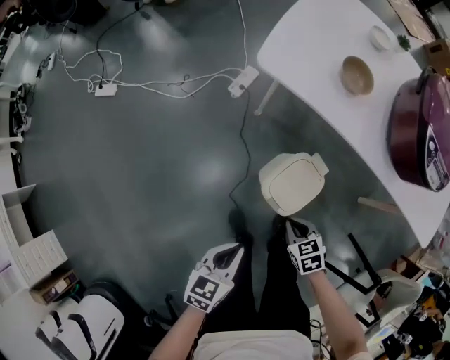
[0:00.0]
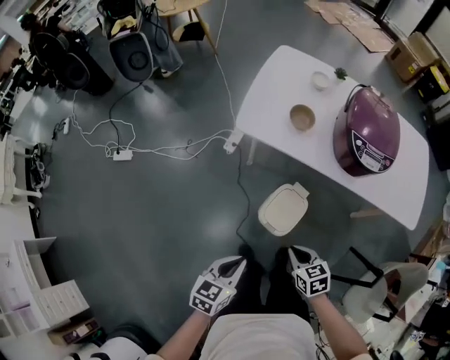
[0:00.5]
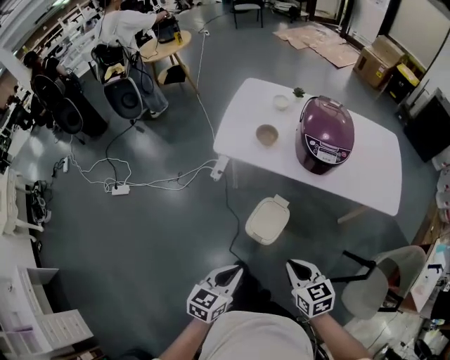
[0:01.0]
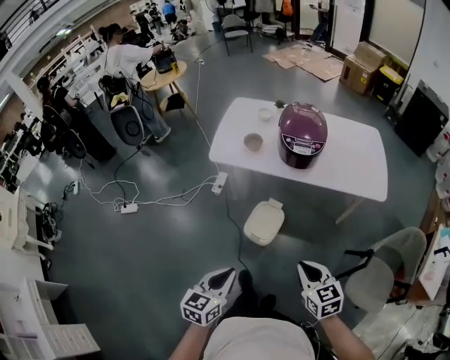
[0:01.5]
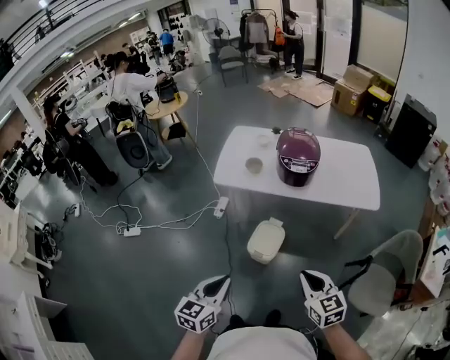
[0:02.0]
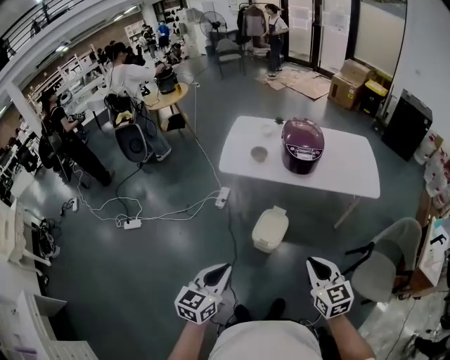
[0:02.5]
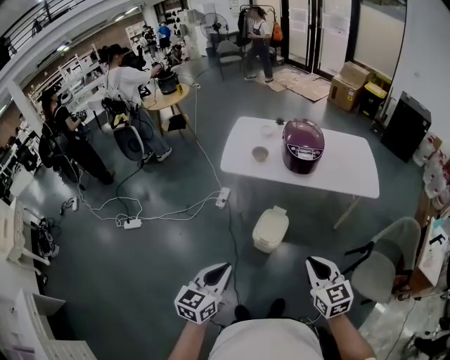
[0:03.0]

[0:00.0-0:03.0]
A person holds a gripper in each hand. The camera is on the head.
0:00.0 to 0:01.5: Both grippers move upward and backward, approximately 40 cm. The left gripper changes its angle by approximately 20 degrees; the right gripper angles its fingers upward, by approximately 30 degrees.
0:01.5 to 0:03.0: The left gripper is displaced to the left, upward and backward by about 15 cm, while the right gripper is displaced upward, backward and to the left by roughly 15 cm.

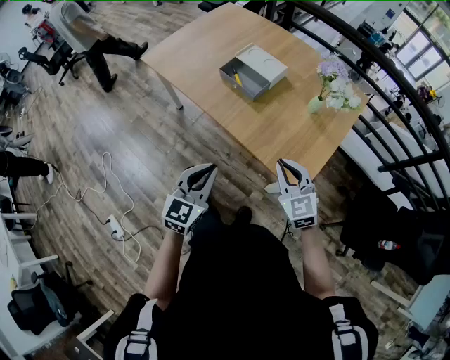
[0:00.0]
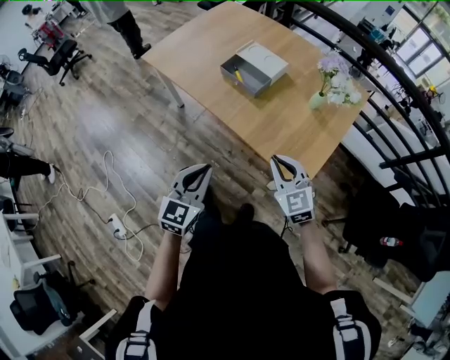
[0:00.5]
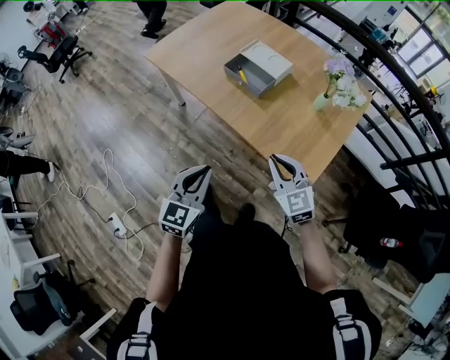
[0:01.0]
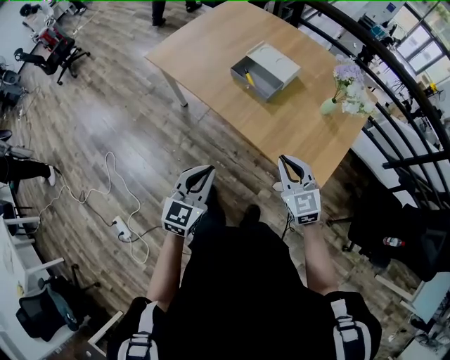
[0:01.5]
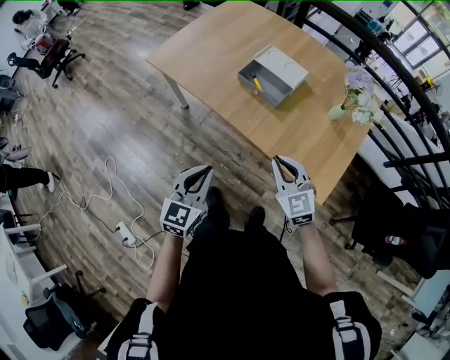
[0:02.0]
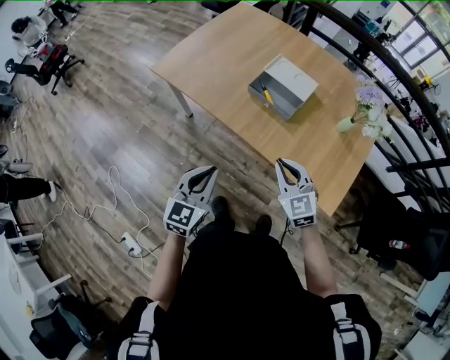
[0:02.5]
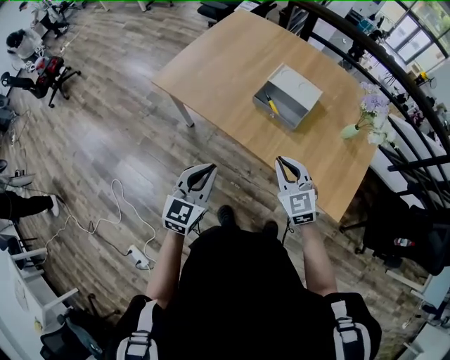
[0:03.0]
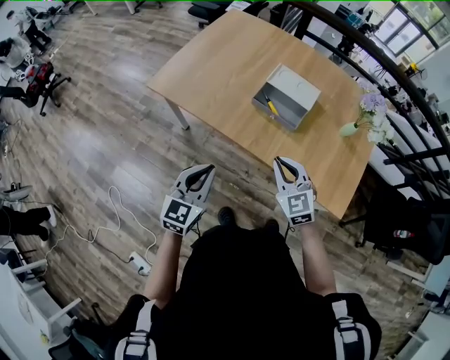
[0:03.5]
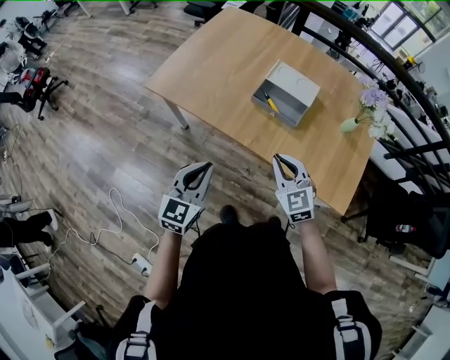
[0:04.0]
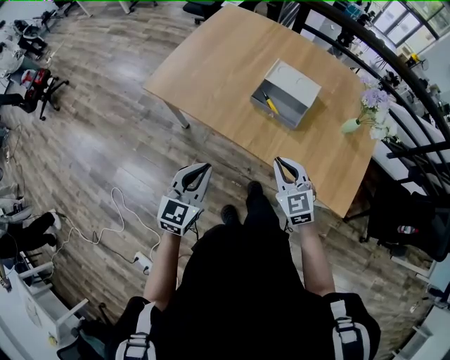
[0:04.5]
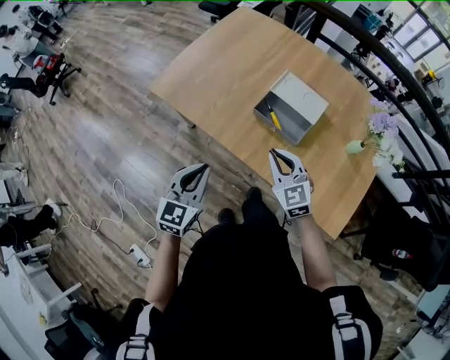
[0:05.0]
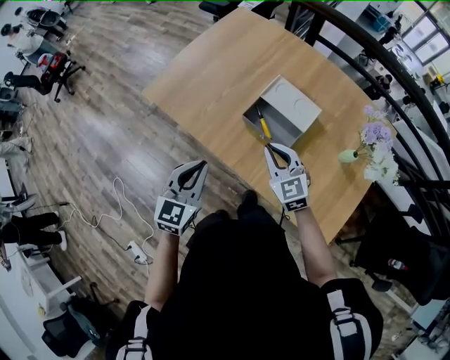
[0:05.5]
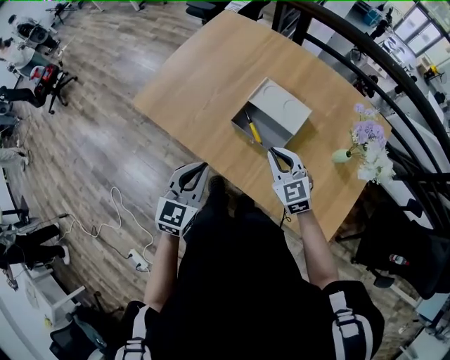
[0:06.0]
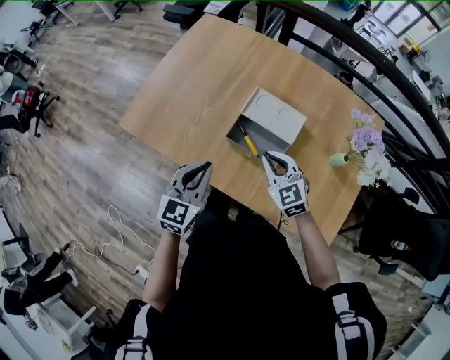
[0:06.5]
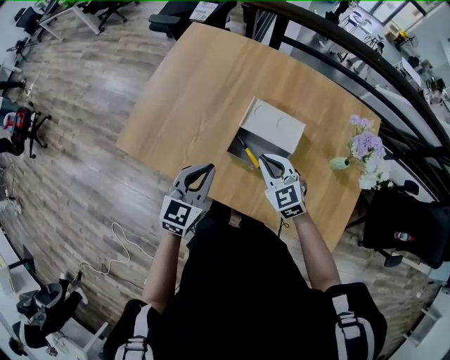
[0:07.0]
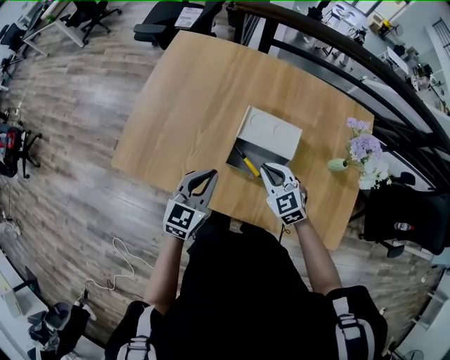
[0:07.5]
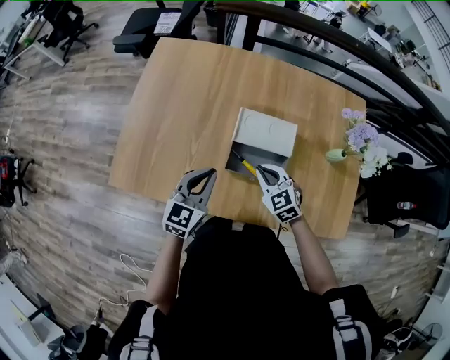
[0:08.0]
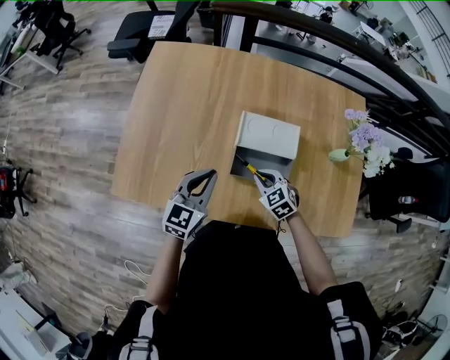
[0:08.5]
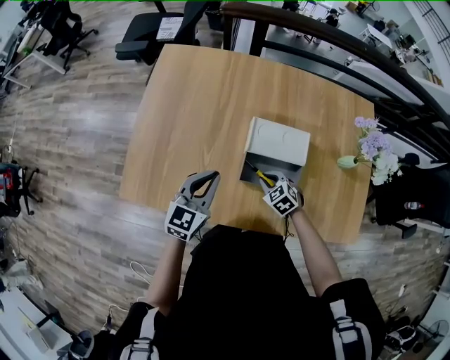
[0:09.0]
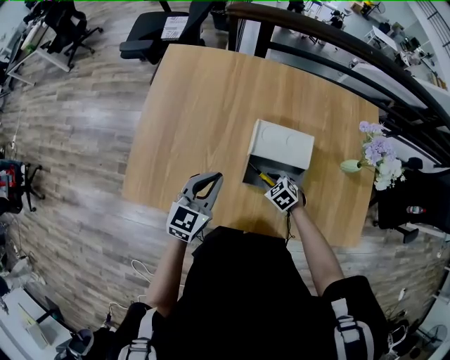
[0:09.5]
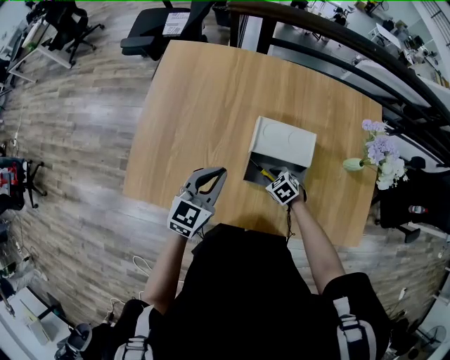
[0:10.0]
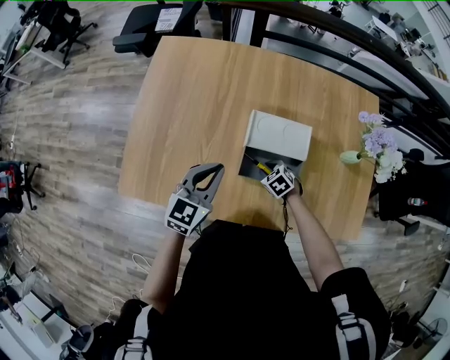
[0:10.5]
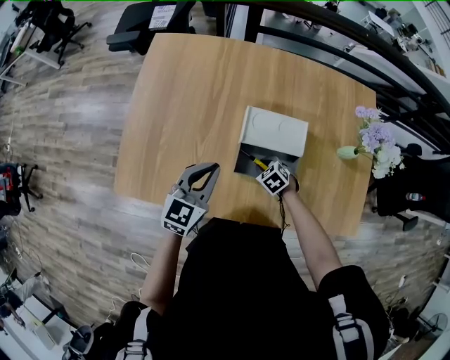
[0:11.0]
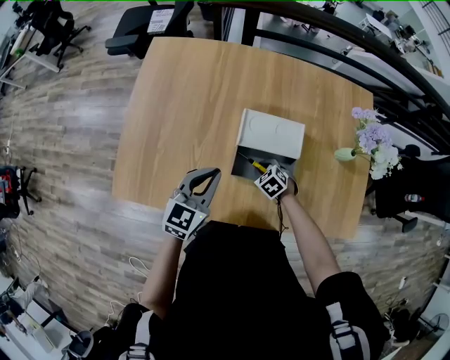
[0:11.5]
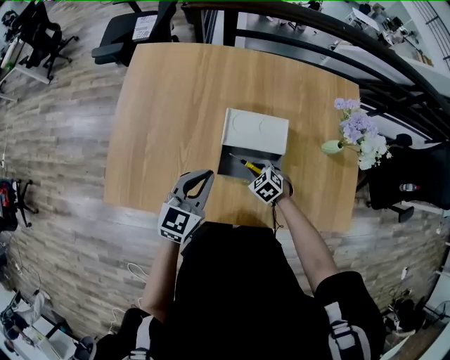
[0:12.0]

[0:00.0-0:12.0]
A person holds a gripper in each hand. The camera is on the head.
0:00.0 to 0:02.0: Both grippers move to the left and forward, approximately 15 cm.
0:02.0 to 0:04.0: The two grippers go roughly 20 cm to the left and forward.
0:04.0 to 0:06.0: Both grippers travel together forward and to the right, some 20 cm.
0:06.0 to 0:08.0: The left gripper moves forward, about 20 cm, and swivels approximately 30 degrees. Meanwhile the right gripper moves forward, to the left and downward, roughly 15 cm, and turns by about 20 degrees.
0:08.0 to 0:10.0: The left gripper shifts by roughly 5 cm, while the right gripper heads downward, covering approximately 15 cm, changes its angle by roughly 30 degrees, and opens its fingers.
0:10.0 to 0:12.0: The left gripper travels to the right by roughly 5 cm.

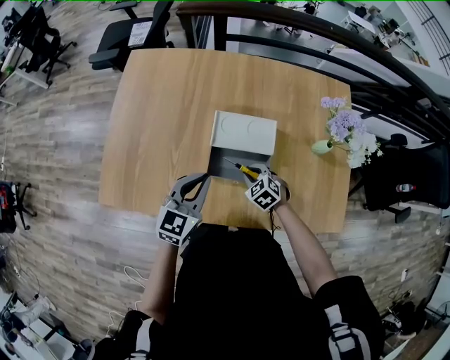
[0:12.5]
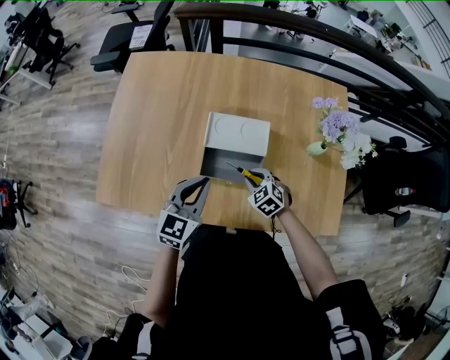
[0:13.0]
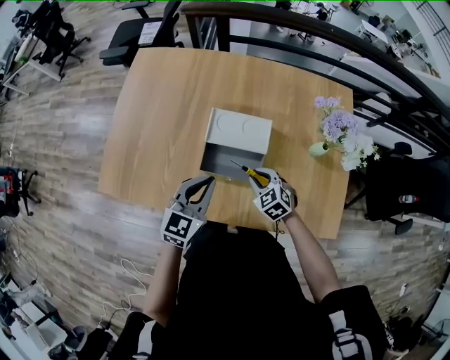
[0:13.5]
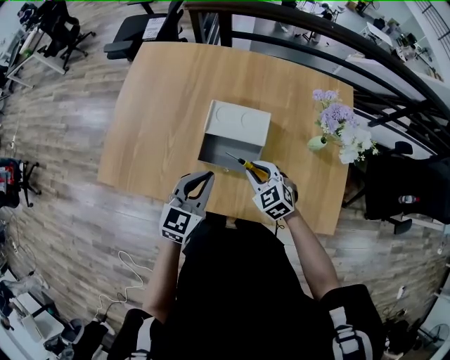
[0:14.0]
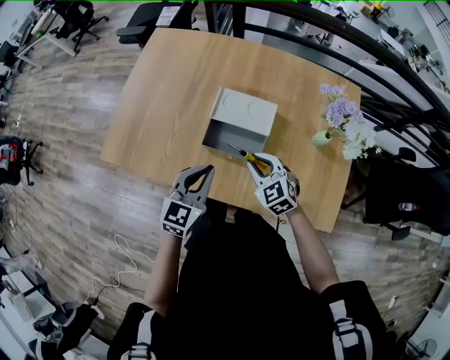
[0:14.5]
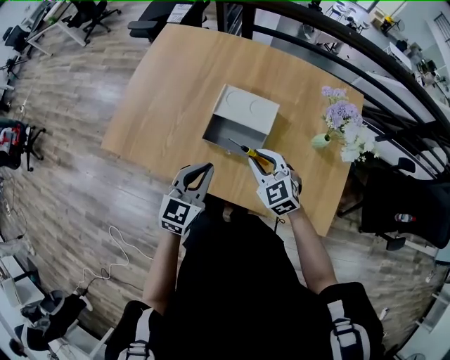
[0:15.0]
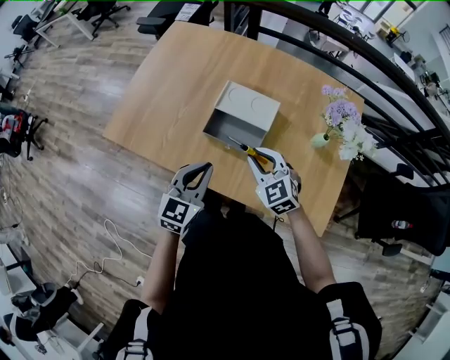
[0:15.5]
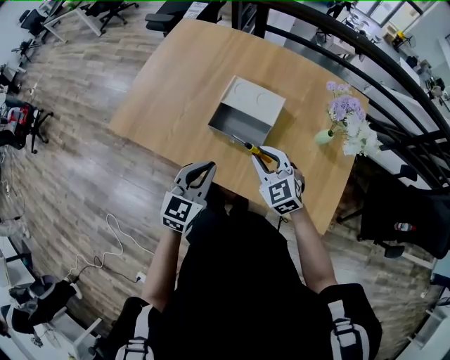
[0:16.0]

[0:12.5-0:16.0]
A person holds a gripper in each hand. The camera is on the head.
0:12.5 to 0:14.5: The right gripper goes about 15 cm upward and backward, and rotates some 20 degrees, while the left gripper moves backward and to the right, approximately 10 cm.
0:14.5 to 0:16.0: The grippers both shift backward by roughly 5 cm.

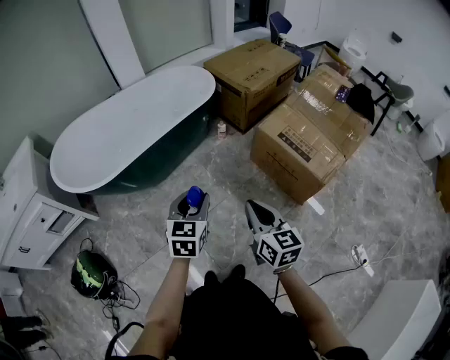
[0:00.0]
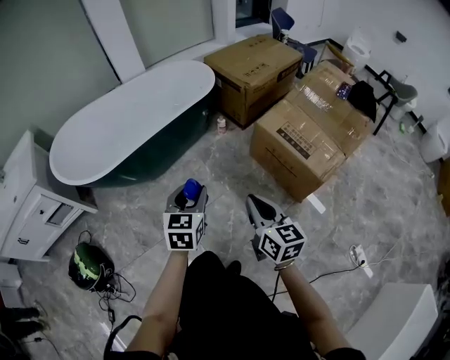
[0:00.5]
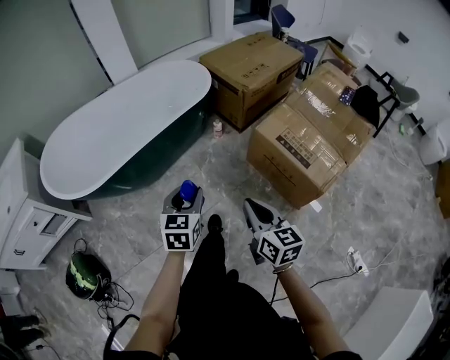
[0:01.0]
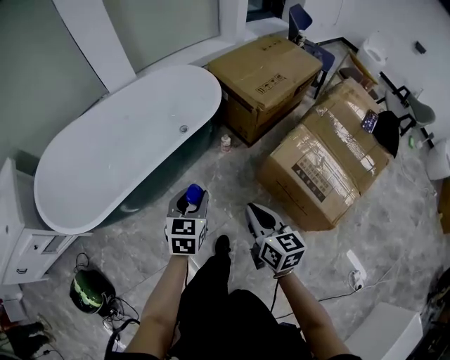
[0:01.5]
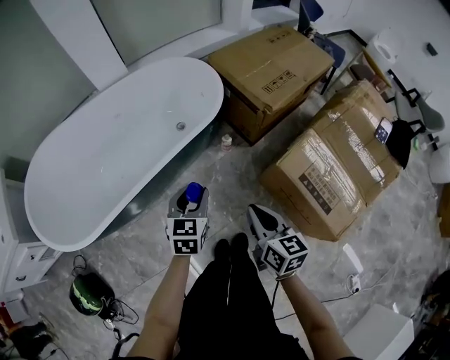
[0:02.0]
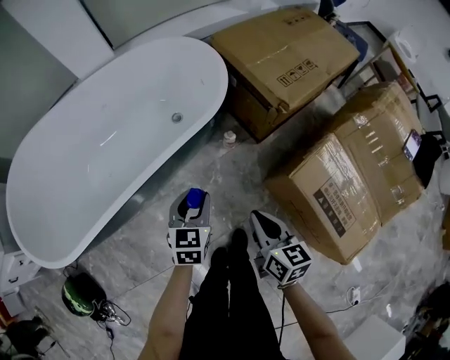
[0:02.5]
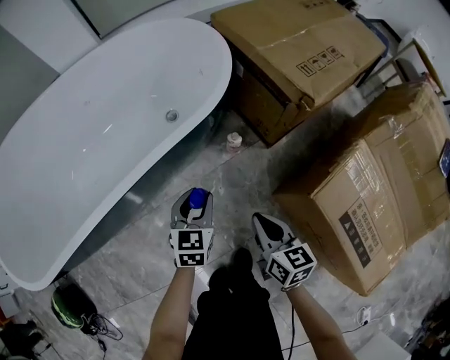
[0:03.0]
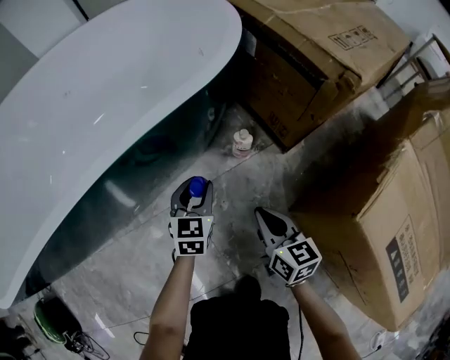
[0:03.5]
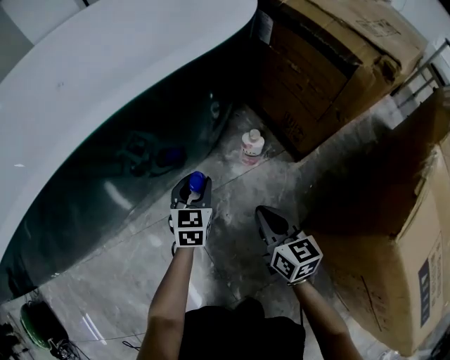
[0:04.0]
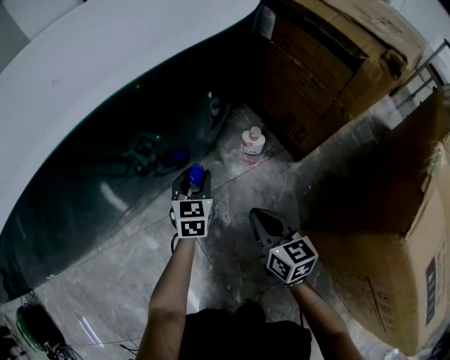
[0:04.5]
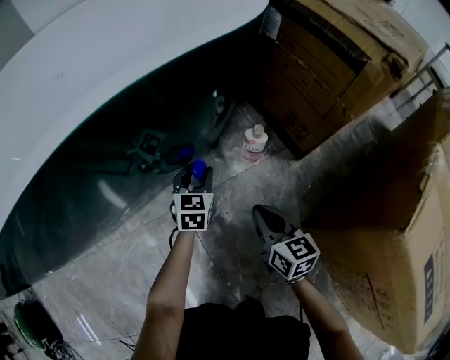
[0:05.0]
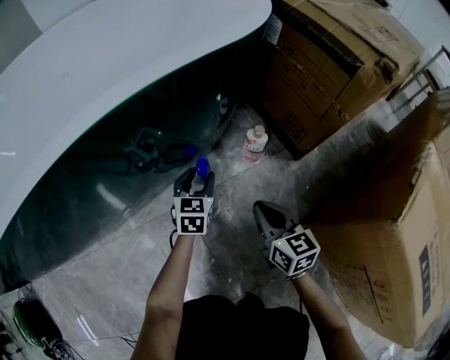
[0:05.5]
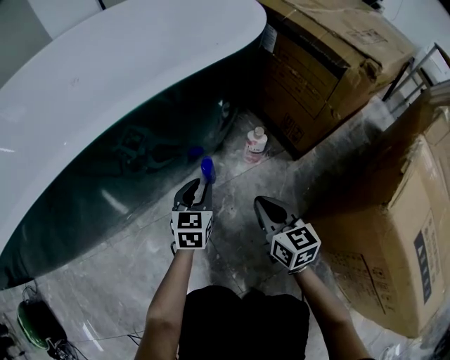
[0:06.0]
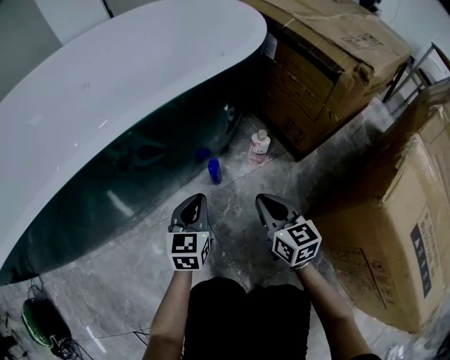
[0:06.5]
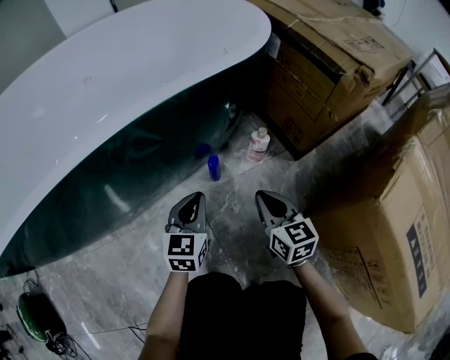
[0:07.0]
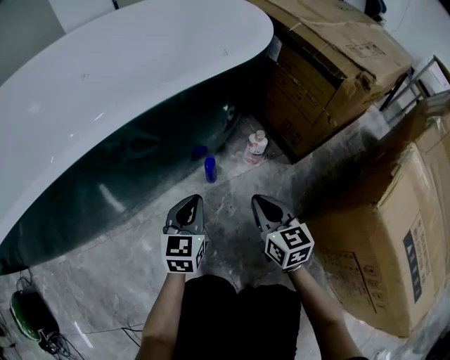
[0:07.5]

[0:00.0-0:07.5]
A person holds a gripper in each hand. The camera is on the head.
0:00.0 to 0:02.0: The two grippers go approximately 35 cm forward.
0:02.0 to 0:04.0: The grippers both shift downward and forward by roughly 60 cm.
0:04.0 to 0:05.5: There are only small adjustments of the grippers.
0:05.5 to 0:07.5: The right gripper shifts some 5 cm upward; the left gripper shifts approximately 15 cm upward and backward, and closes up.
